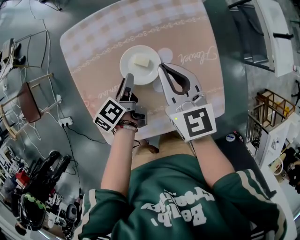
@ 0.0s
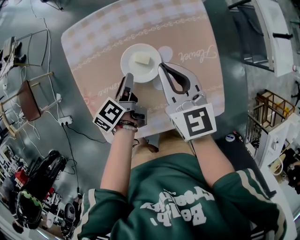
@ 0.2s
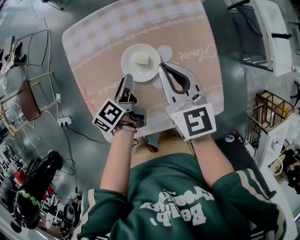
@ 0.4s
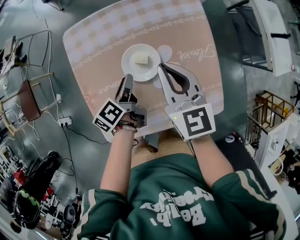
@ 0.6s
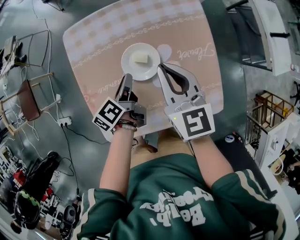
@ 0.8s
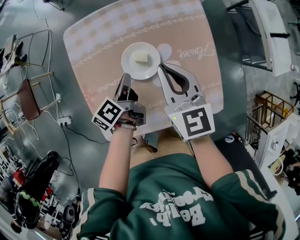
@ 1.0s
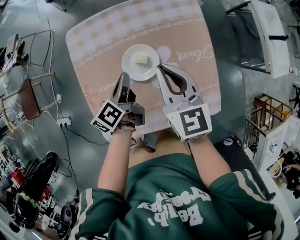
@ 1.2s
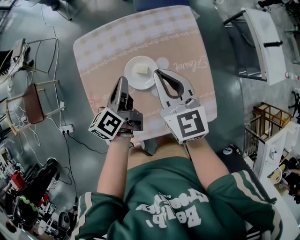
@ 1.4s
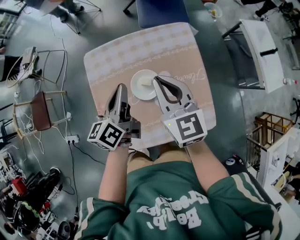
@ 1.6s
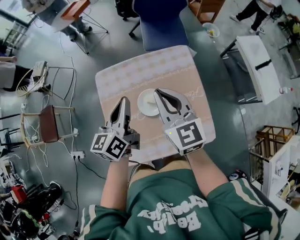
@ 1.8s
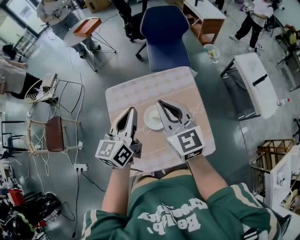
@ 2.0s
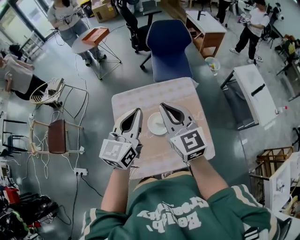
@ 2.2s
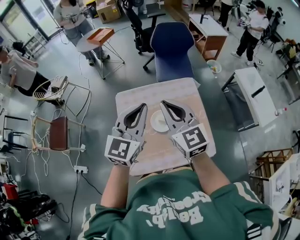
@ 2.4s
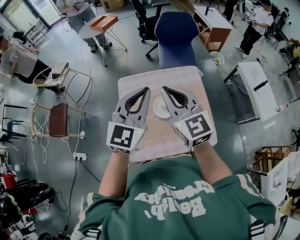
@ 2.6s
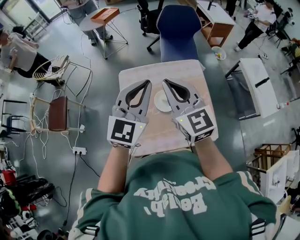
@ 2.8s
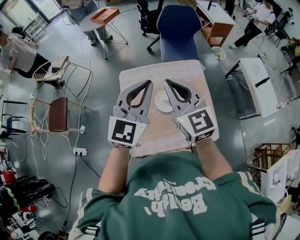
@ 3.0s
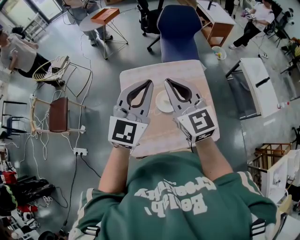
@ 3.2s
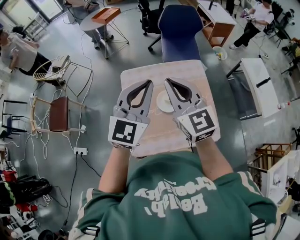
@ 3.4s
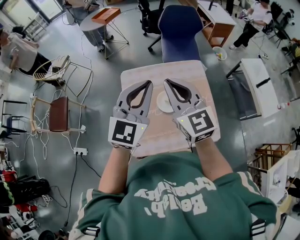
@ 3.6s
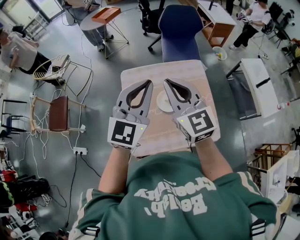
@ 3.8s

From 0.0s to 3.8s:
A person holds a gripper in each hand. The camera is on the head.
From 0.0s to 1.2s: The left gripper moves upward, about 5 cm, and closes.
From 1.2s to 2.6s: The two grippers go about 30 cm upward. The right gripper rotates some 20 degrees. Meanwhile the left gripper twists roughly 70 degrees clockwise, seen from behind.
From 2.6s to 3.8s: There are only small adjustments of the grippers.

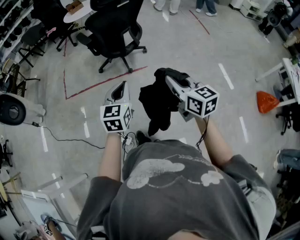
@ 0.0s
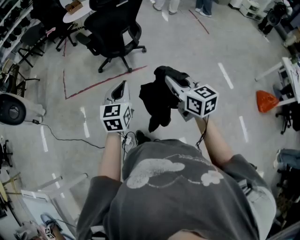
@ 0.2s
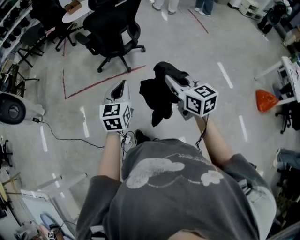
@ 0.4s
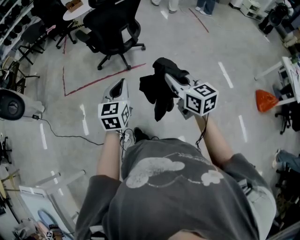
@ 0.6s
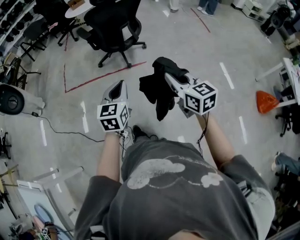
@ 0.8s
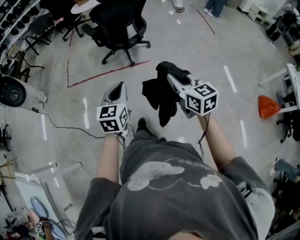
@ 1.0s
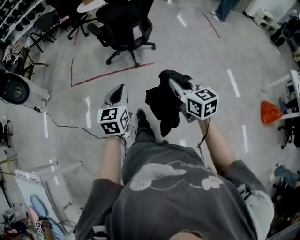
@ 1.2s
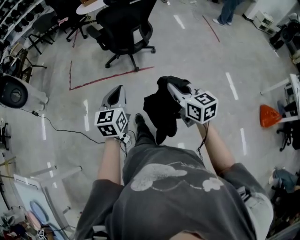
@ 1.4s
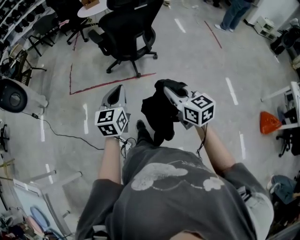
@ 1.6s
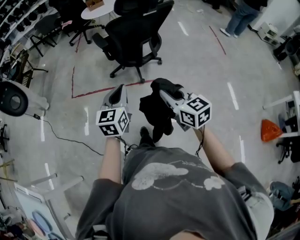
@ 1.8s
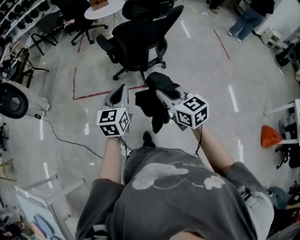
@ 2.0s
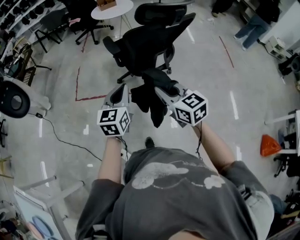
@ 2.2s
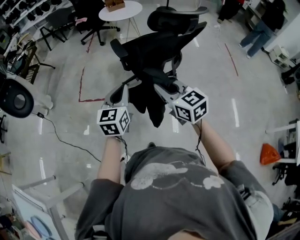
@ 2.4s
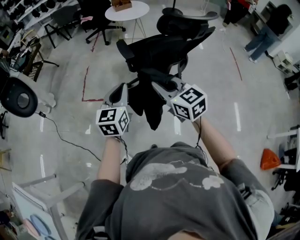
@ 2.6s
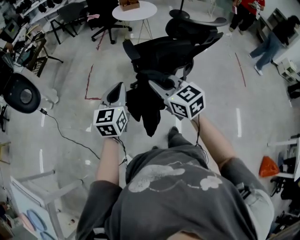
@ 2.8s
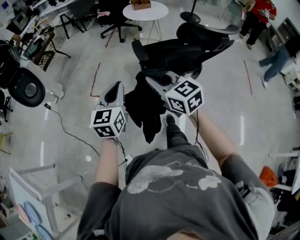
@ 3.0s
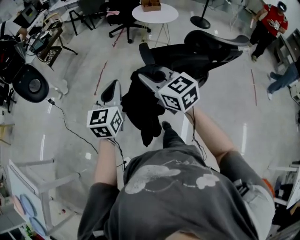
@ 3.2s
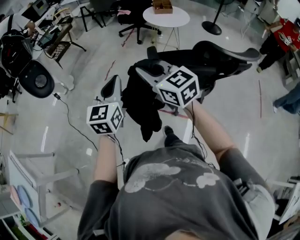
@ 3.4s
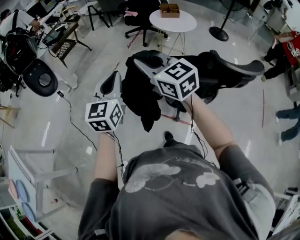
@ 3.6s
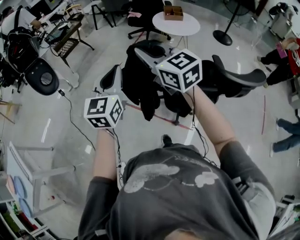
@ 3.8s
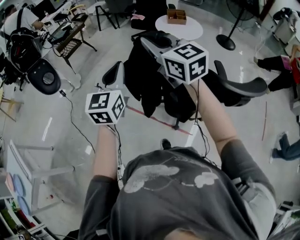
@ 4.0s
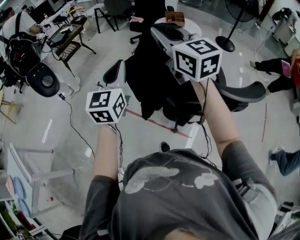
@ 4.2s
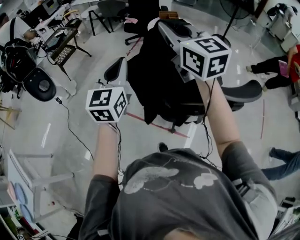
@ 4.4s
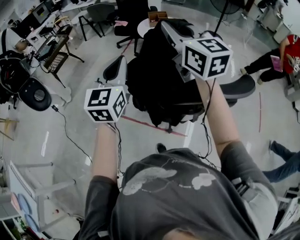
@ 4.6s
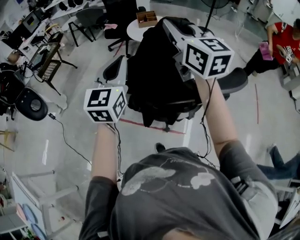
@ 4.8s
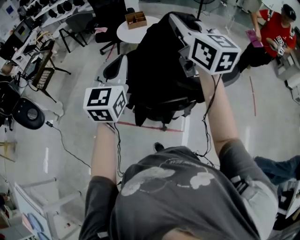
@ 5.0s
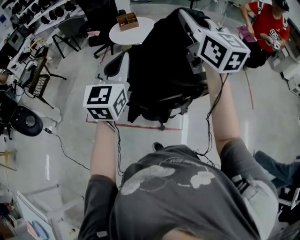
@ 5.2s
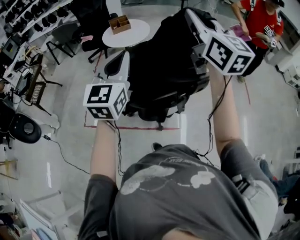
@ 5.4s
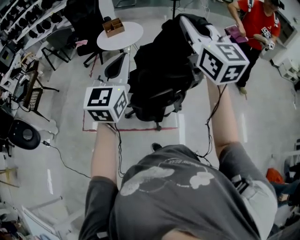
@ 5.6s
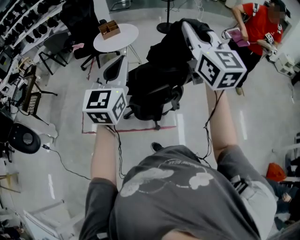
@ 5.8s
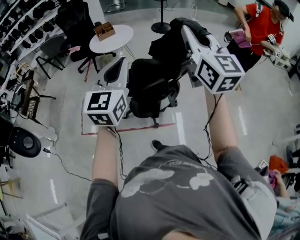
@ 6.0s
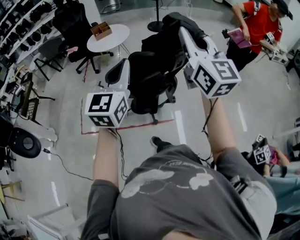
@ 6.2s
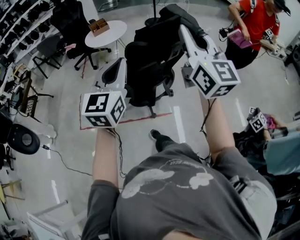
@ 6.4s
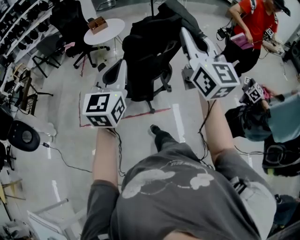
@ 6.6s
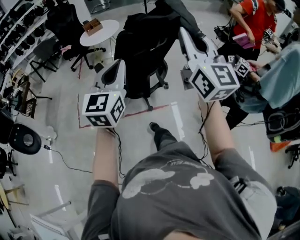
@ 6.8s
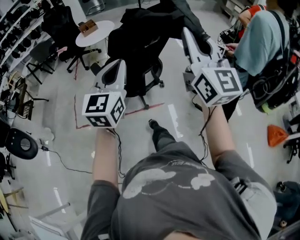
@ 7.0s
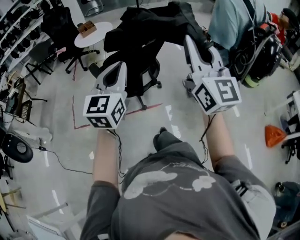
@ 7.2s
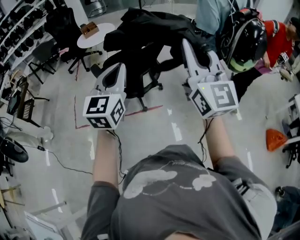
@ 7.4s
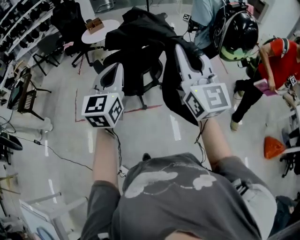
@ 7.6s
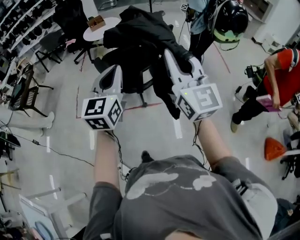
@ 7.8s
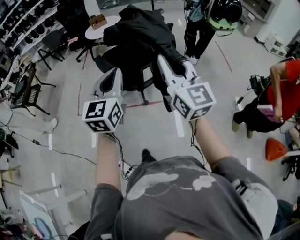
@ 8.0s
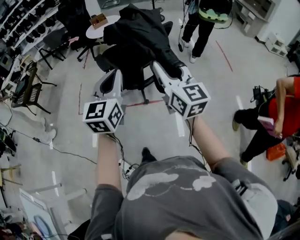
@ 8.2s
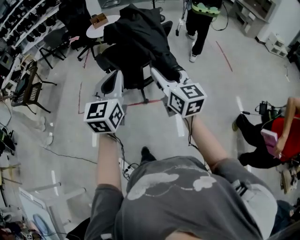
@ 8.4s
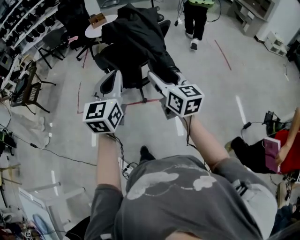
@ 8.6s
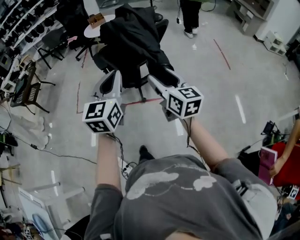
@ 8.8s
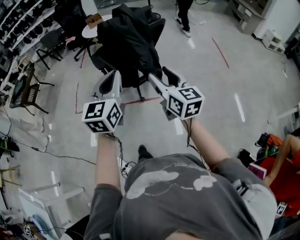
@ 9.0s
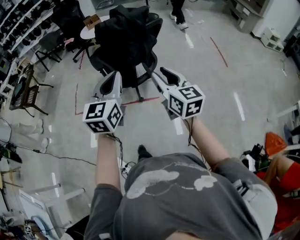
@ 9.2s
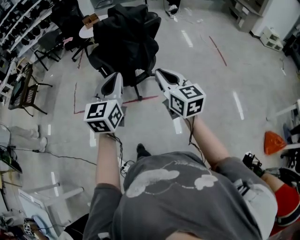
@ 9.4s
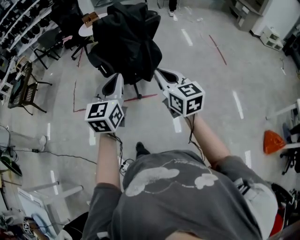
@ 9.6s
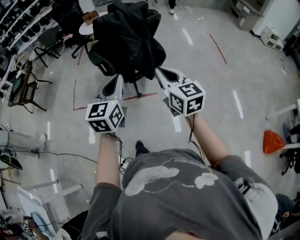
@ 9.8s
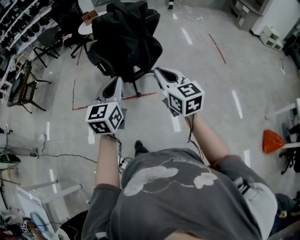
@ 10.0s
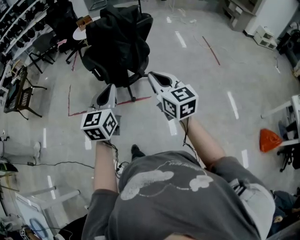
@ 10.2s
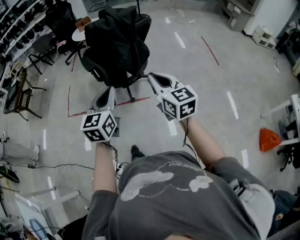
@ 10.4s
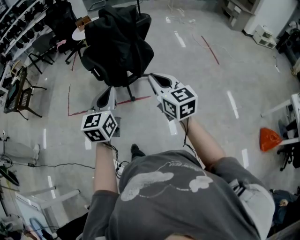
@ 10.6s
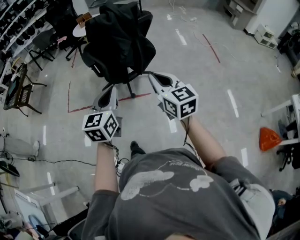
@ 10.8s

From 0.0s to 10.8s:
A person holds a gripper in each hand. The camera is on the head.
From 0.0s to 1.6s: The left gripper shifts by about 5 cm, while the right gripper shifts some 5 cm forward.
From 1.6s to 3.0s: The grippers both shift forward and to the left by some 40 cm. The right gripper changes its angle by roughly 30 degrees.
From 3.0s to 4.6s: The right gripper shifts approximately 40 cm forward, upward and to the right. The left gripper heads forward, to the right and upward, covering approximately 30 cm.
From 4.6s to 6.2s: The right gripper changes place by approximately 30 cm, and turns by approximately 40 degrees. Meanwhile the left gripper moves approximately 20 cm, and swivels roughly 30 degrees.
From 6.2s to 7.8s: The left gripper goes about 25 cm backward and to the right; the right gripper shifts some 25 cm backward.
From 7.8s to 9.2s: The left gripper heads backward, covering about 10 cm, while the right gripper is displaced downward by roughly 15 cm, swivels some 30 degrees, and opens up.
From 9.2s to 10.8s: The right gripper changes place by approximately 5 cm, and closes up, while the left gripper shifts some 10 cm downward and backward.

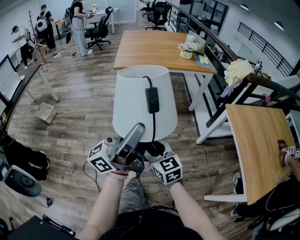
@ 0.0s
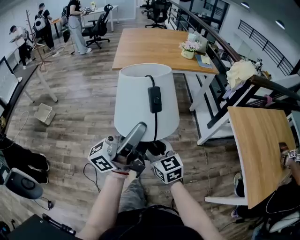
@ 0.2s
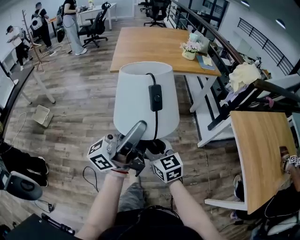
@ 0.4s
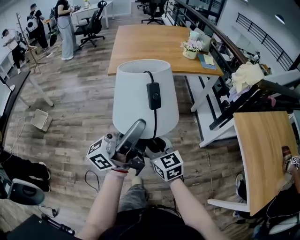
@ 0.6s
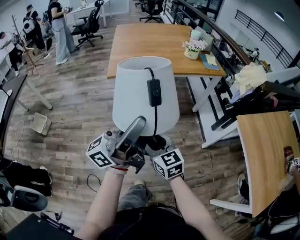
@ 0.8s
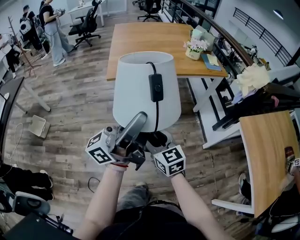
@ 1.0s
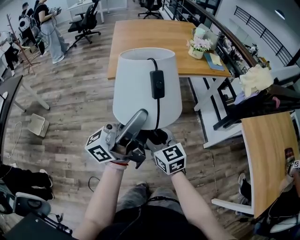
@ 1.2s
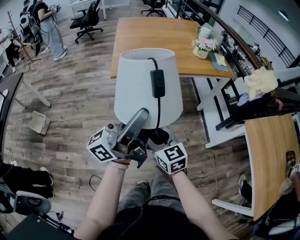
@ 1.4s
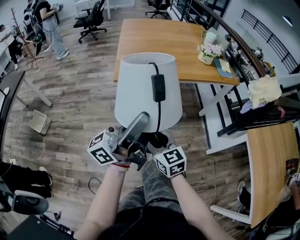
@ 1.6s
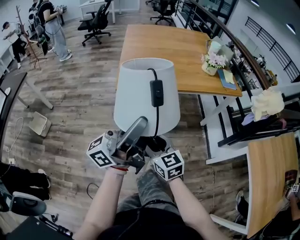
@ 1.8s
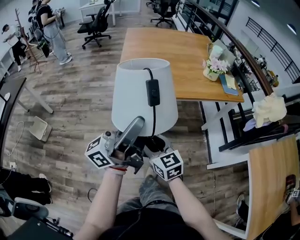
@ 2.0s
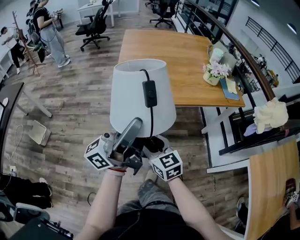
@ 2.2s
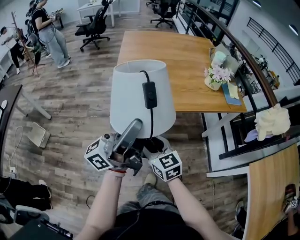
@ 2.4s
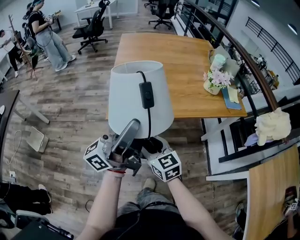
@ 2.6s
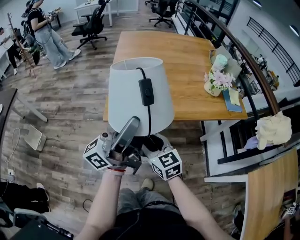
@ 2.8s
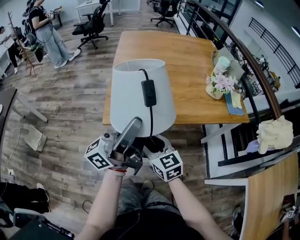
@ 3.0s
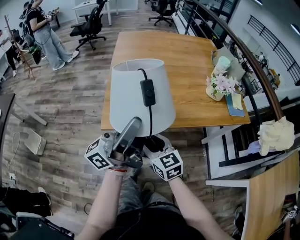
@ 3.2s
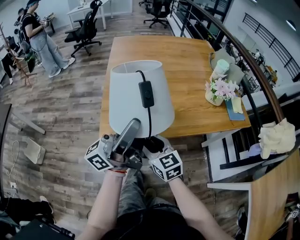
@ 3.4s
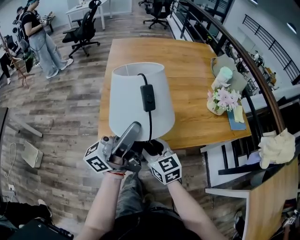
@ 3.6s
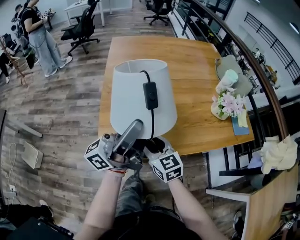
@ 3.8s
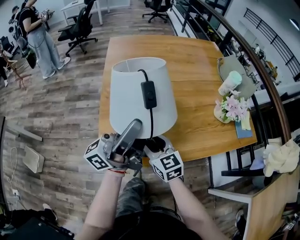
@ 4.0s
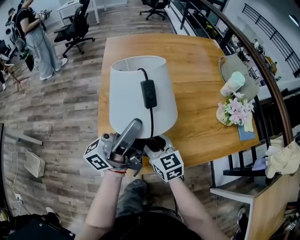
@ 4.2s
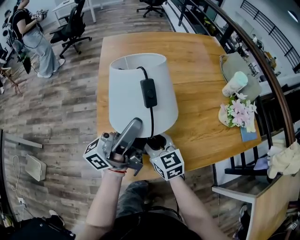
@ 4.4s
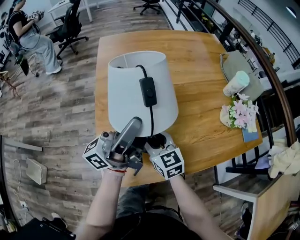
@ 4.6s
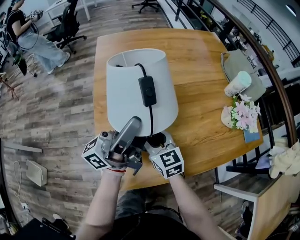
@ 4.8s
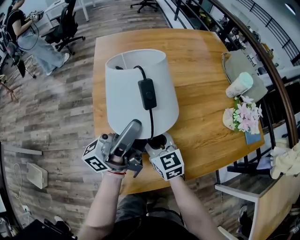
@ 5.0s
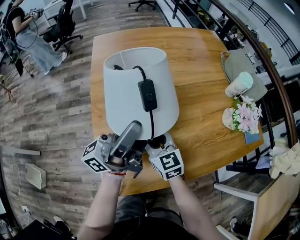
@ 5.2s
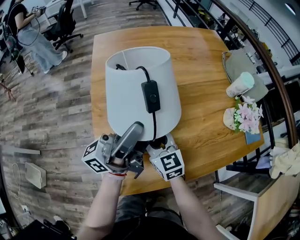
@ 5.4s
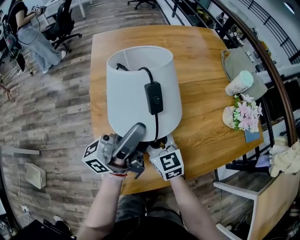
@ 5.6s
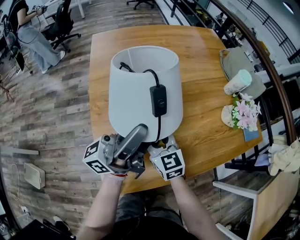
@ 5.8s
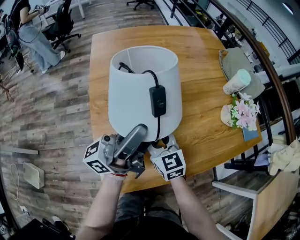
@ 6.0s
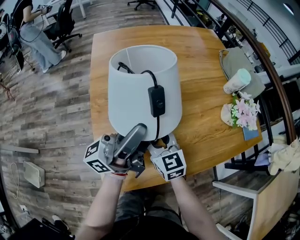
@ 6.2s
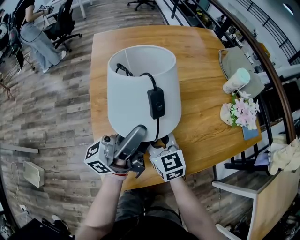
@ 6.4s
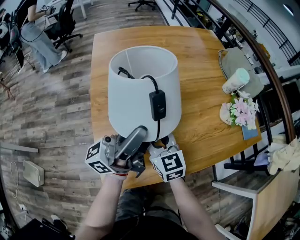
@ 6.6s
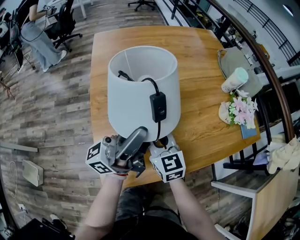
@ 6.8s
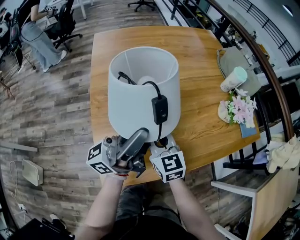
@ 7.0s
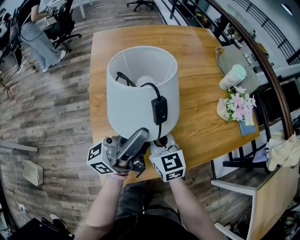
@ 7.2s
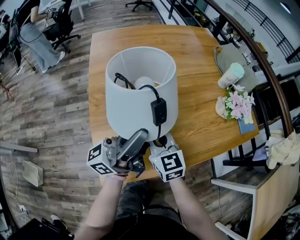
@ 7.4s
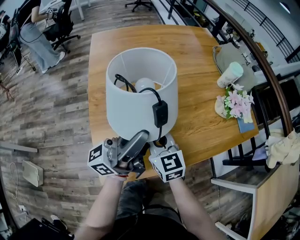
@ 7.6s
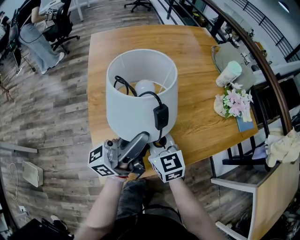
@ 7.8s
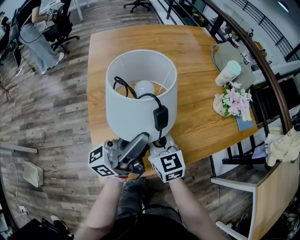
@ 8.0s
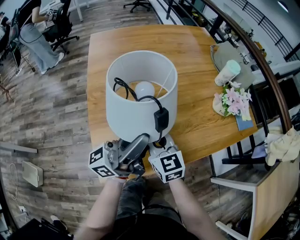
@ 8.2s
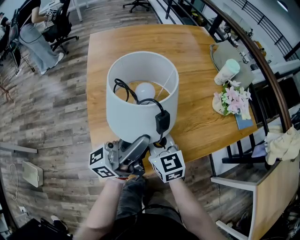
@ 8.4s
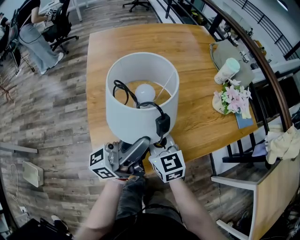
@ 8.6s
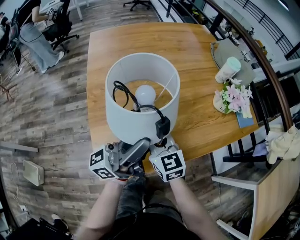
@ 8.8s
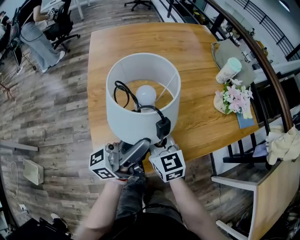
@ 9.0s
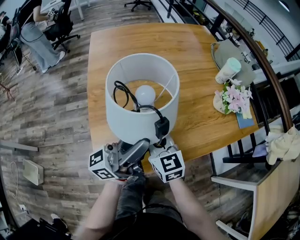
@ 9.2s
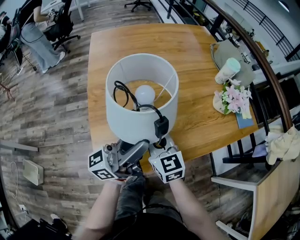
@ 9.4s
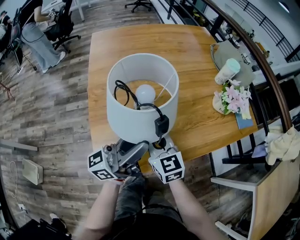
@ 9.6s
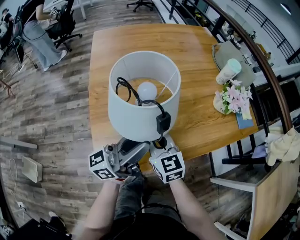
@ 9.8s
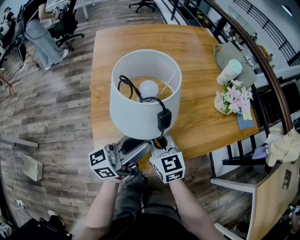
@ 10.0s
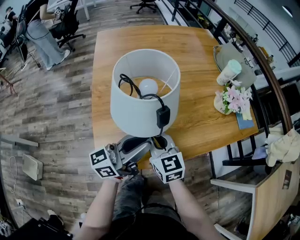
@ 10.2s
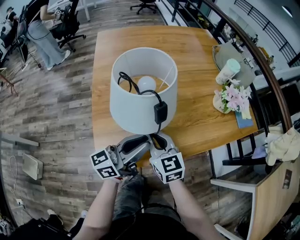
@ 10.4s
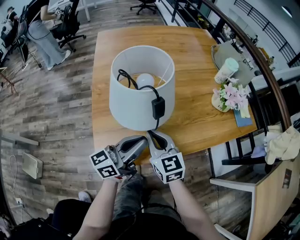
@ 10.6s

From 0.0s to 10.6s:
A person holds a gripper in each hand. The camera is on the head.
From 0.0s to 1.6s: Both grippers travel together forward and to the left, roughly 35 cm.
From 1.6s to 3.0s: The two grippers go some 25 cm forward.
From 3.0s to 4.6s: Both grippers travel together forward, roughly 30 cm.
From 4.6s to 6.0s: The grippers stay close to where they were, moving slightly.
From 6.0s to 7.6s: The right gripper changes place by approximately 5 cm, and closes its fingers, while the left gripper shifts about 5 cm backward.
From 7.6s to 9.0s: The grippers make only small movements.
From 9.0s to 10.6s: The left gripper shifts about 10 cm downward, and turns by about 20 degrees.
